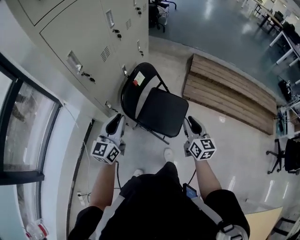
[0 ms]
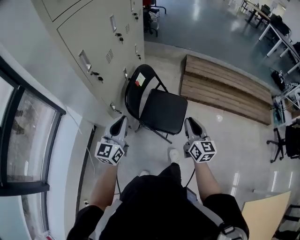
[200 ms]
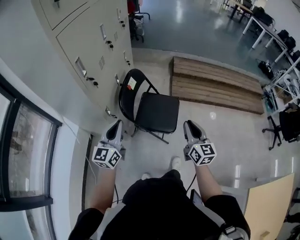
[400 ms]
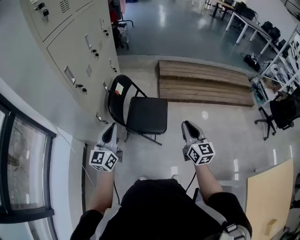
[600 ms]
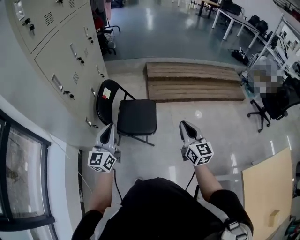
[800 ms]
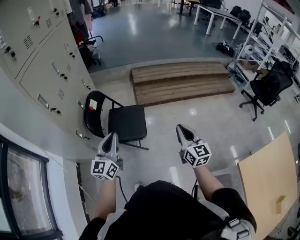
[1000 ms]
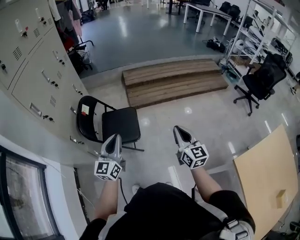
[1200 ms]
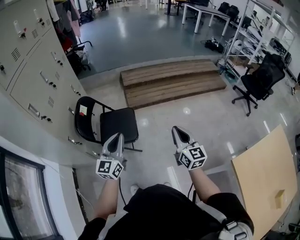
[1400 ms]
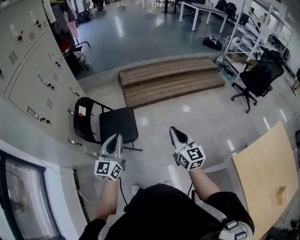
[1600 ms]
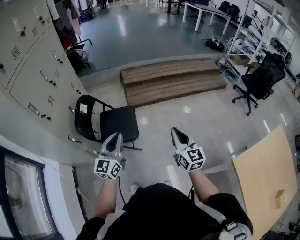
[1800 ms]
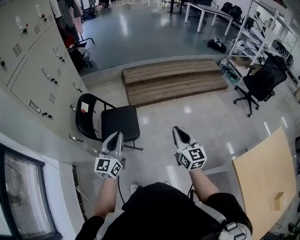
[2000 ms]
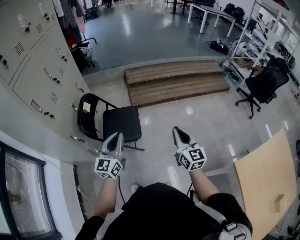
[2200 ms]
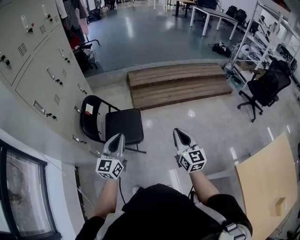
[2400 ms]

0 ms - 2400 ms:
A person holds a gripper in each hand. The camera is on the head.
0 ms - 1200 ms: The left gripper ends up roughly 25 cm from where it was, and rotates about 30 degrees. The right gripper moves approximately 35 cm, and rotates about 30 degrees.
1200 ms - 2400 ms: The grippers make only small movements.

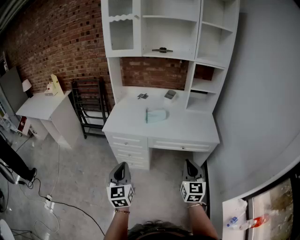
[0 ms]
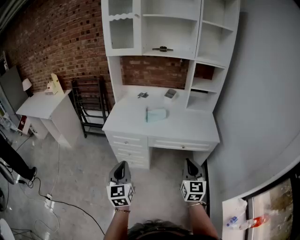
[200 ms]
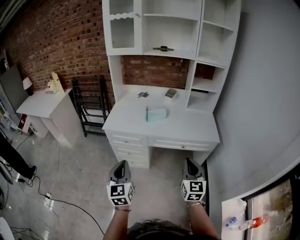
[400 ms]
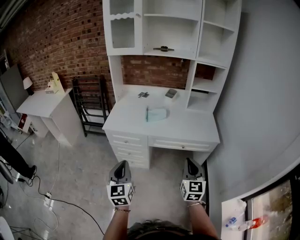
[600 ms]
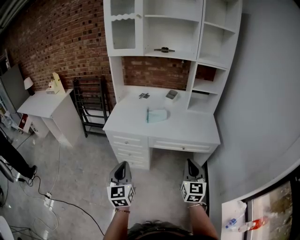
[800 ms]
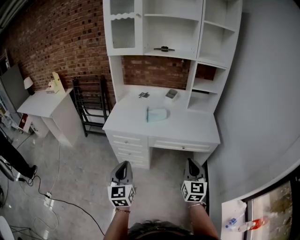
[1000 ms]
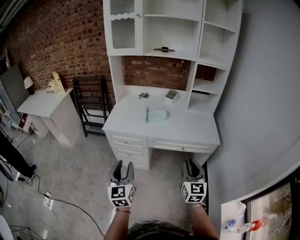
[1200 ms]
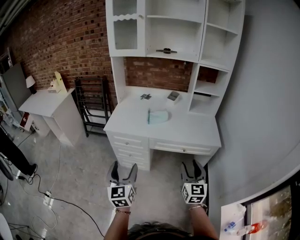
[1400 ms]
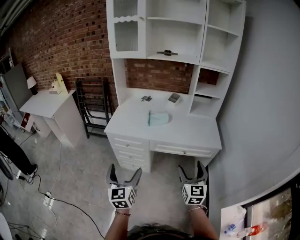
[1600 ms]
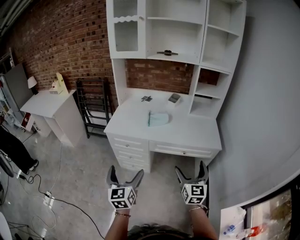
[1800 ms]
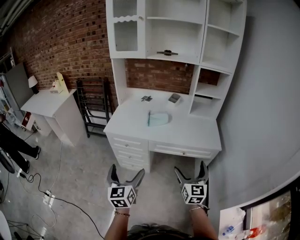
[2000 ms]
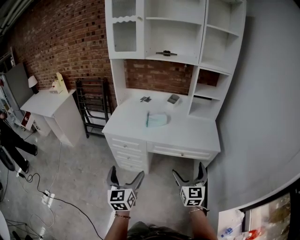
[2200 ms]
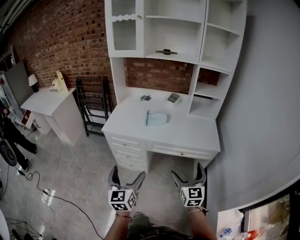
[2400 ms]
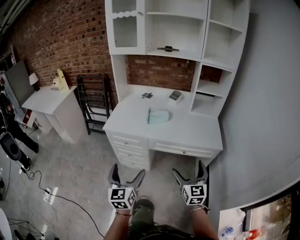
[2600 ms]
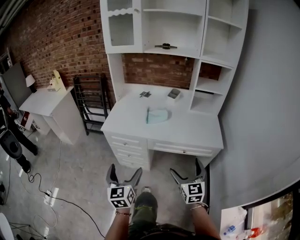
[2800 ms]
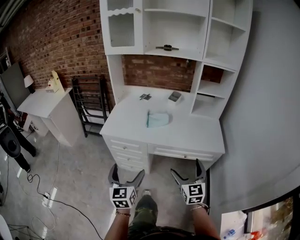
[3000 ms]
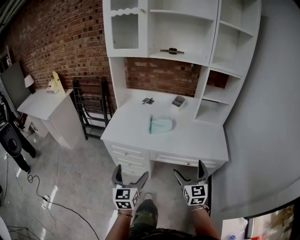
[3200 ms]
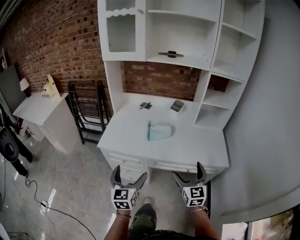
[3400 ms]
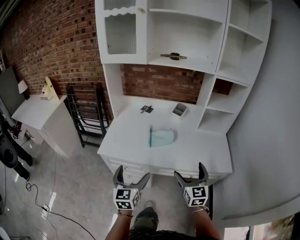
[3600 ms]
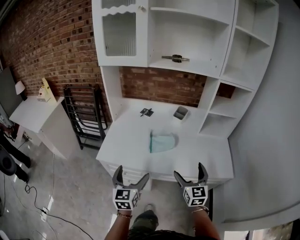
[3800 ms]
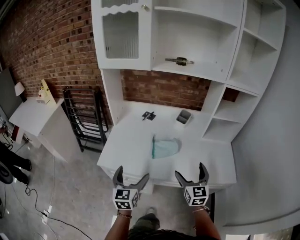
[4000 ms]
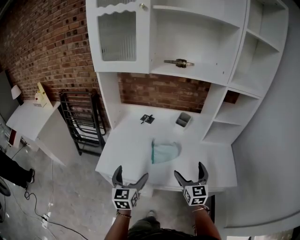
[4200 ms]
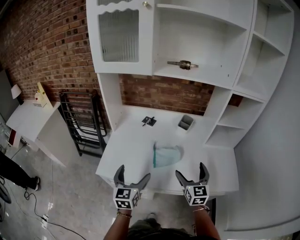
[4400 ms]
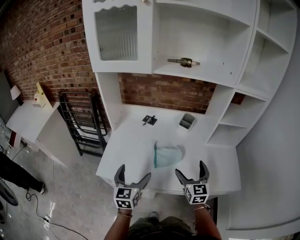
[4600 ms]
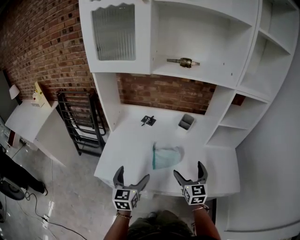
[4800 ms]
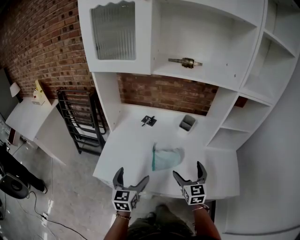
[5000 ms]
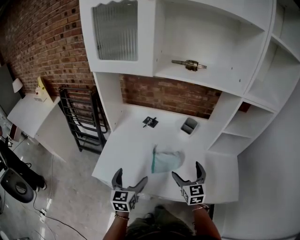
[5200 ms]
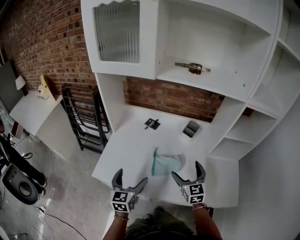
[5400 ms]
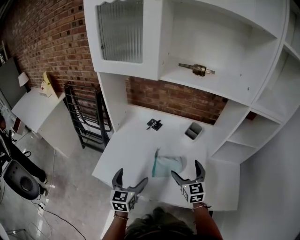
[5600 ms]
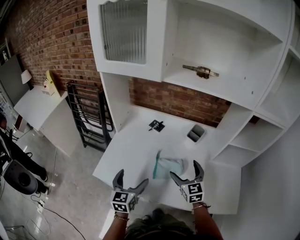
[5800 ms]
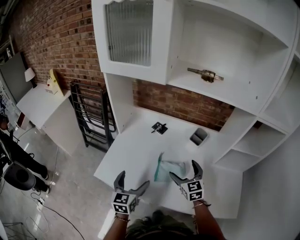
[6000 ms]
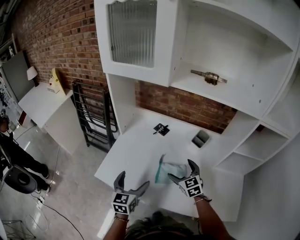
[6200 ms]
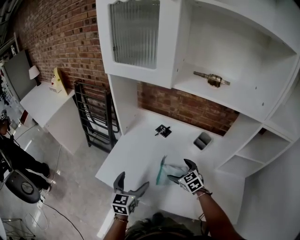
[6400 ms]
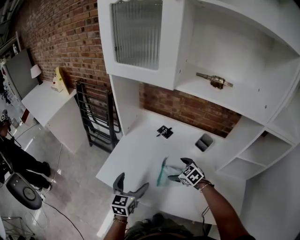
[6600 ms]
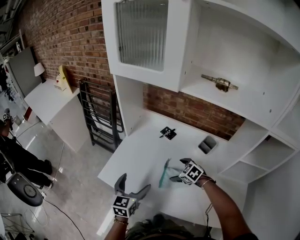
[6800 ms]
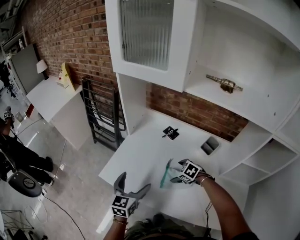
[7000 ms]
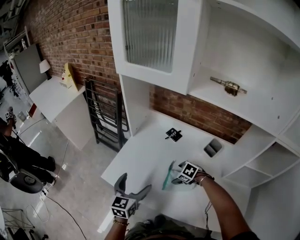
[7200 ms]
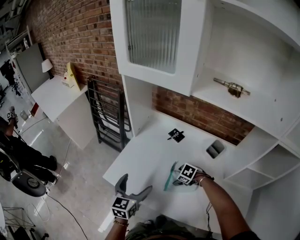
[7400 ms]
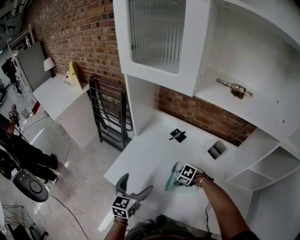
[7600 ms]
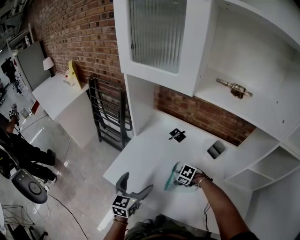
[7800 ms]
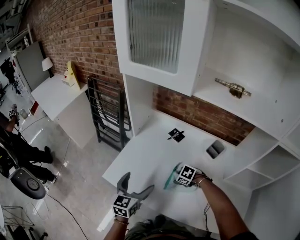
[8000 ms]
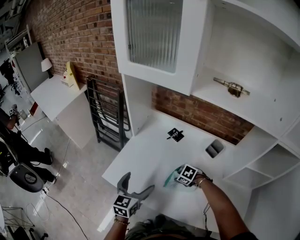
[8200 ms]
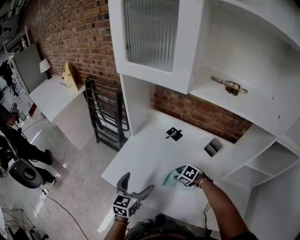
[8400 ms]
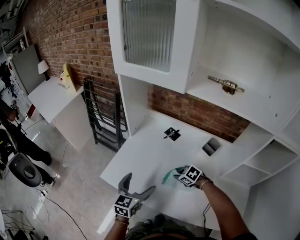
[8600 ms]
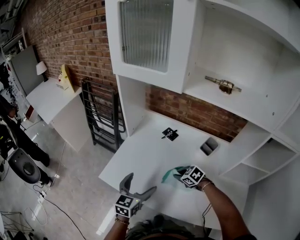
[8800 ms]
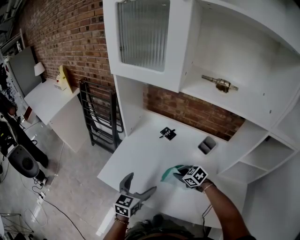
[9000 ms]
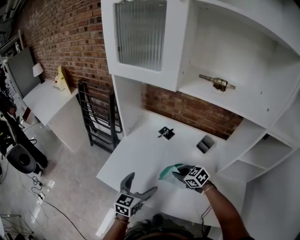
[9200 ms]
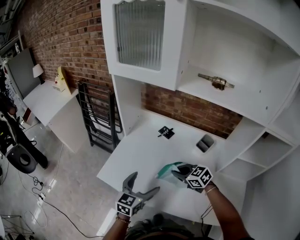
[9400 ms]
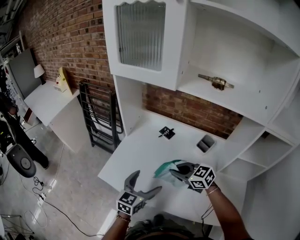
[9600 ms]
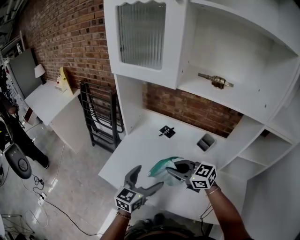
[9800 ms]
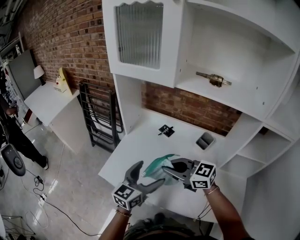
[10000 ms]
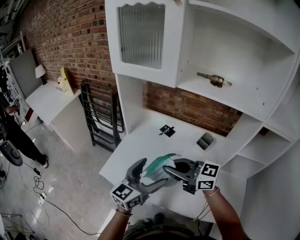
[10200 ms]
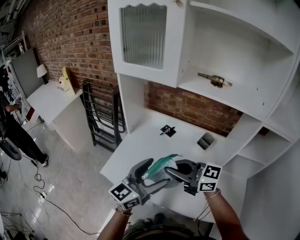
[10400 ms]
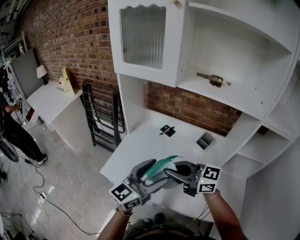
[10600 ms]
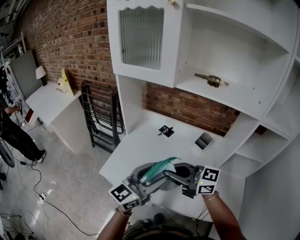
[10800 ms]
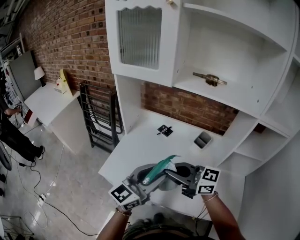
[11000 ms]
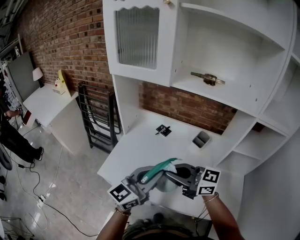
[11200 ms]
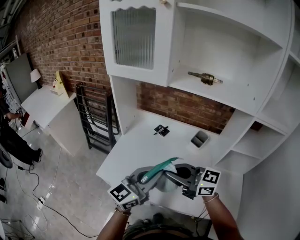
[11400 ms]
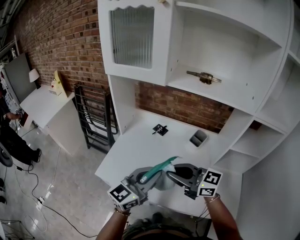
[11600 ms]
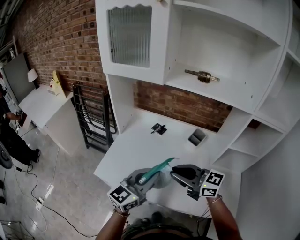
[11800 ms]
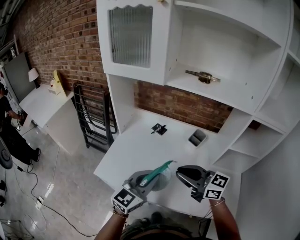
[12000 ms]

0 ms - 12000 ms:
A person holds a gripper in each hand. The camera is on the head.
0 ms - 1600 ms: The left gripper opens; the right gripper opens its fingers.
1600 ms - 3000 ms: The grippers both shift forward by about 10 cm.
3000 ms - 4400 ms: The grippers both shift forward by roughly 30 cm.
4400 ms - 6000 ms: The left gripper shifts approximately 5 cm forward. Meanwhile the right gripper heads forward, covering some 15 cm, and rotates roughly 20 degrees.
6000 ms - 7600 ms: The right gripper shifts roughly 15 cm downward, and angles its fingers downward, by roughly 50 degrees.
7600 ms - 9000 ms: The right gripper is displaced upward by roughly 10 cm, rotates about 30 degrees, and closes; the left gripper ends up approximately 5 cm from where it was.
9000 ms - 10400 ms: The left gripper heads upward, covering approximately 15 cm, and swivels about 30 degrees. Meanwhile the right gripper travels upward by approximately 25 cm, and points its fingers some 50 degrees further upward.
10400 ms - 12000 ms: The left gripper changes place by approximately 5 cm, and closes up; the right gripper heads to the right, covering roughly 10 cm.

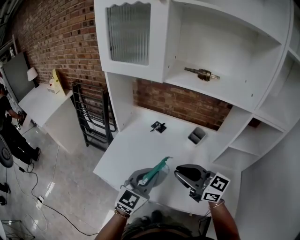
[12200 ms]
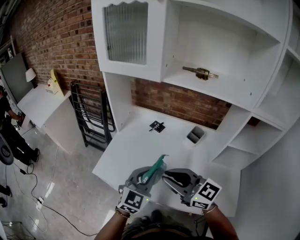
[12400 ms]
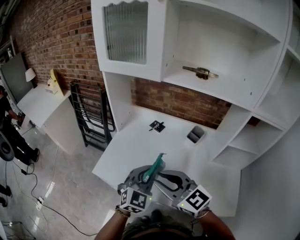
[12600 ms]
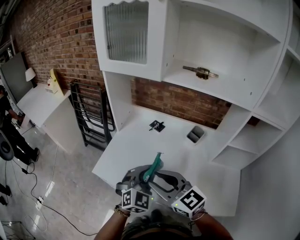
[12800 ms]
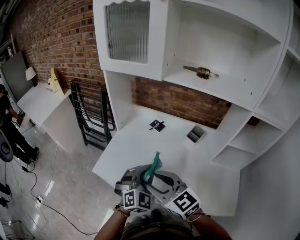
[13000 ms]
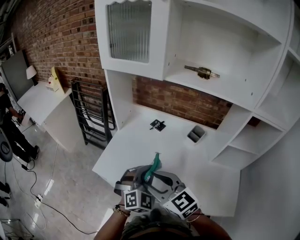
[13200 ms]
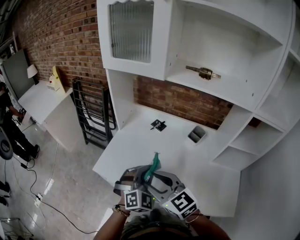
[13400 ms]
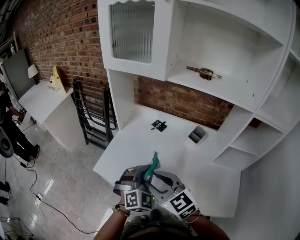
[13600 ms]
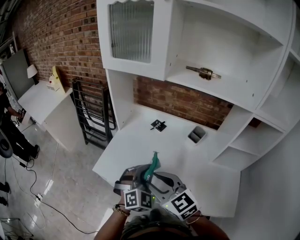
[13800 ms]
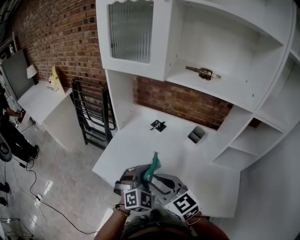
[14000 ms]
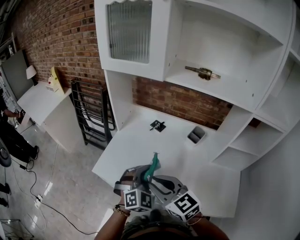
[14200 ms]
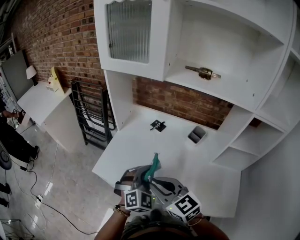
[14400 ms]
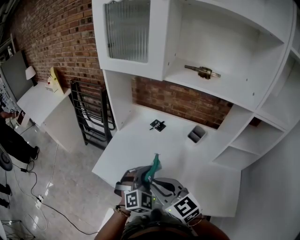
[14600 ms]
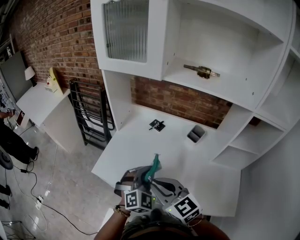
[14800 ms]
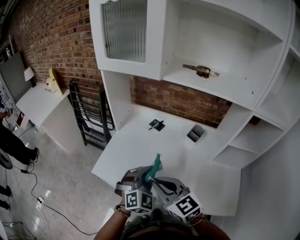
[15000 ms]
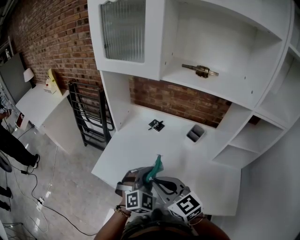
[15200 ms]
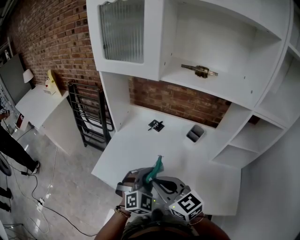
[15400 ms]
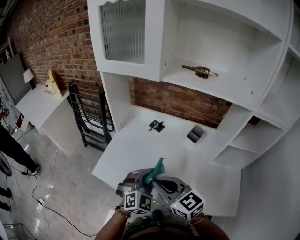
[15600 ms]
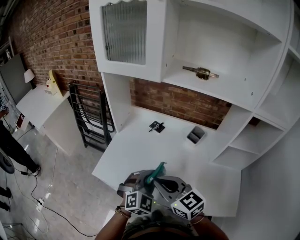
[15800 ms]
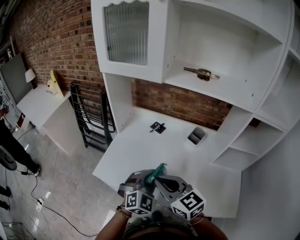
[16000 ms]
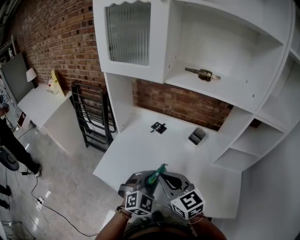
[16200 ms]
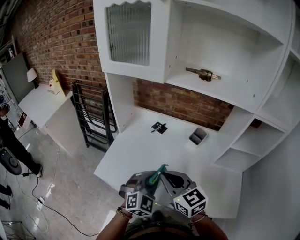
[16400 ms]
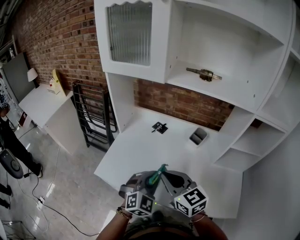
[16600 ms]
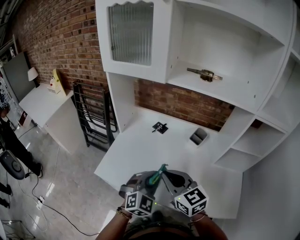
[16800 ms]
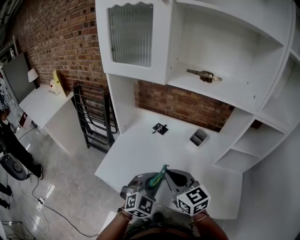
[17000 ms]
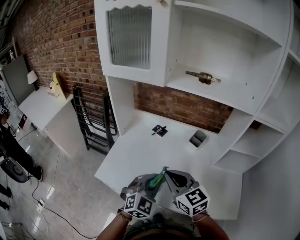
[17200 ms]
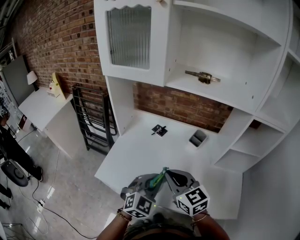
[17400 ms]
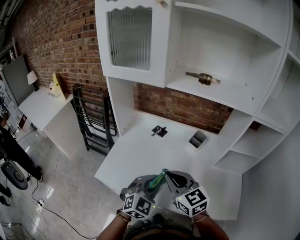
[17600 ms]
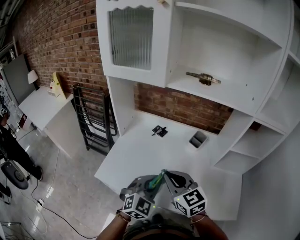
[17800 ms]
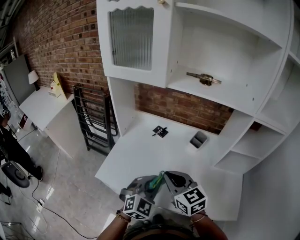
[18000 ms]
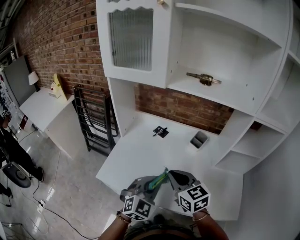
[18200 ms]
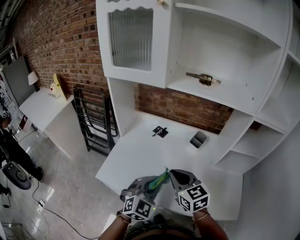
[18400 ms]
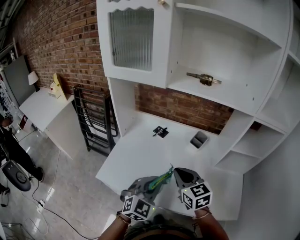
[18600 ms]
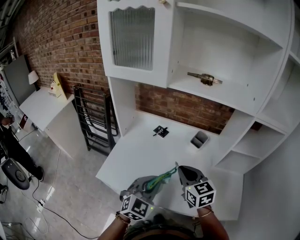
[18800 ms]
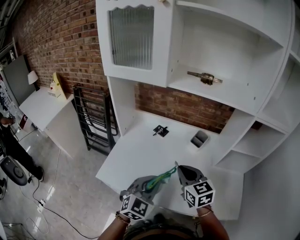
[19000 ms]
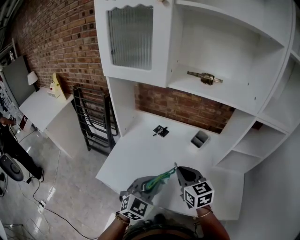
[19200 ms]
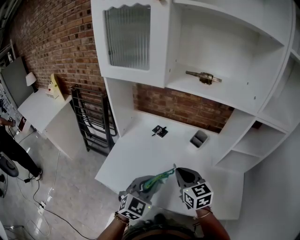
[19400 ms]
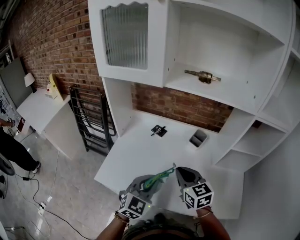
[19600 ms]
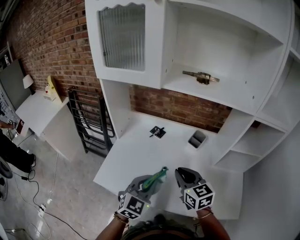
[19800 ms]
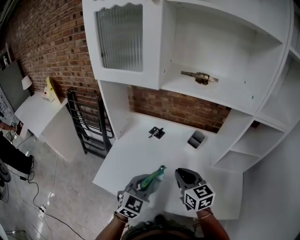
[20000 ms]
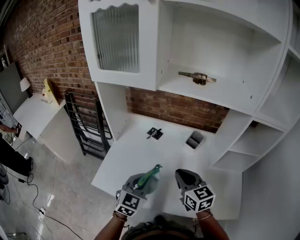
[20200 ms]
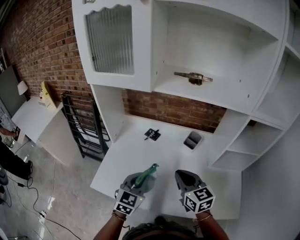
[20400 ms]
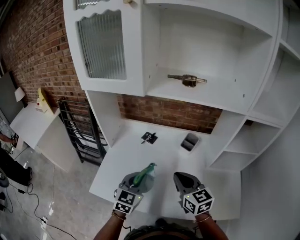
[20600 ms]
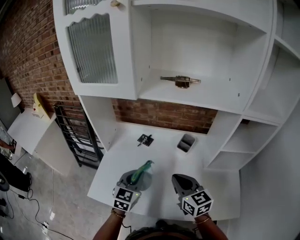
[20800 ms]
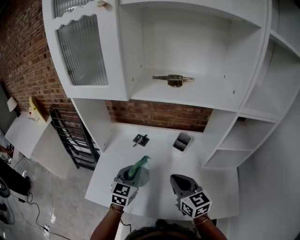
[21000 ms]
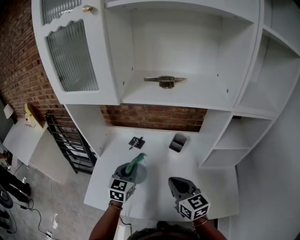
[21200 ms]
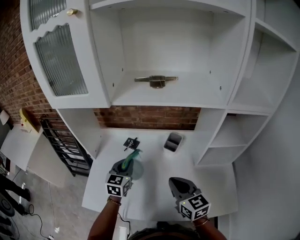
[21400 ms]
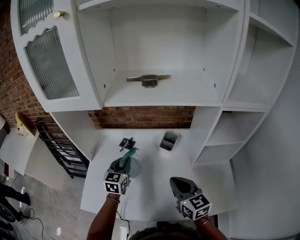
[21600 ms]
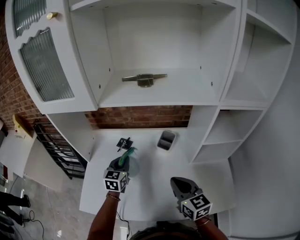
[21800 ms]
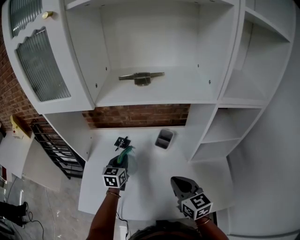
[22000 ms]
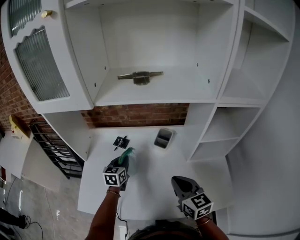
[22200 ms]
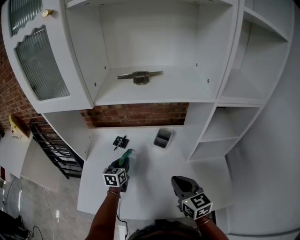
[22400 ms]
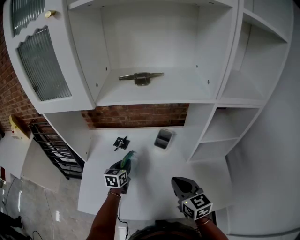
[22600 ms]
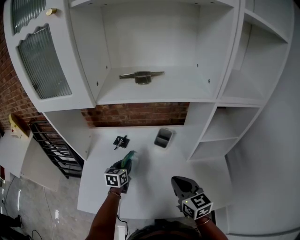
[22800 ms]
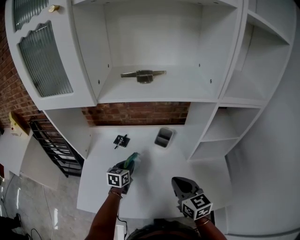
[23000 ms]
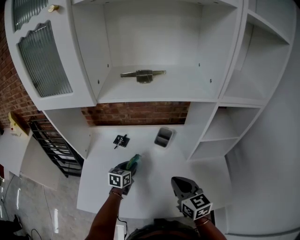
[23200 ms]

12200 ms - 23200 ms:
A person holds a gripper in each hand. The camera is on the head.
12200 ms - 13800 ms: The left gripper changes its angle by approximately 40 degrees, while the right gripper moves to the left, some 10 cm, and swivels some 20 degrees.
13800 ms - 15400 ms: The grippers move only a little.
15400 ms - 17000 ms: The right gripper ends up approximately 5 cm from where it was.
17000 ms - 18400 ms: The grippers stay close to where they were, moving slightly.
18400 ms - 20000 ms: The right gripper ends up about 5 cm from where it was.
20000 ms - 21600 ms: The right gripper moves to the right, some 10 cm, while the left gripper travels forward by roughly 20 cm.
21600 ms - 23200 ms: The left gripper shifts about 10 cm downward, and rotates about 20 degrees.
